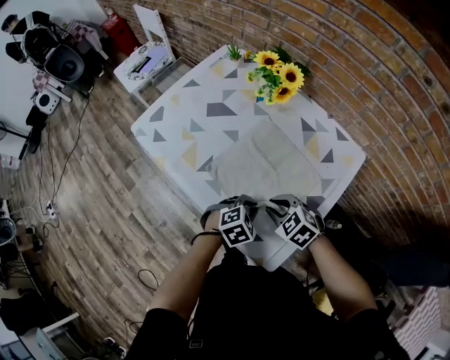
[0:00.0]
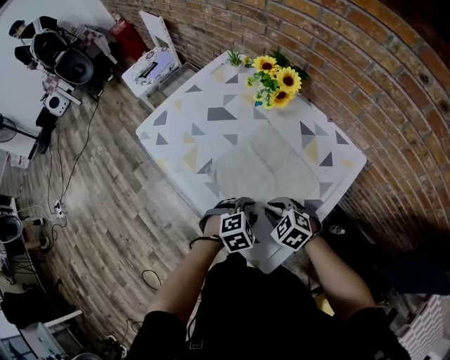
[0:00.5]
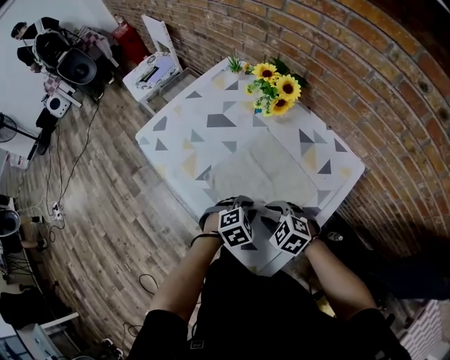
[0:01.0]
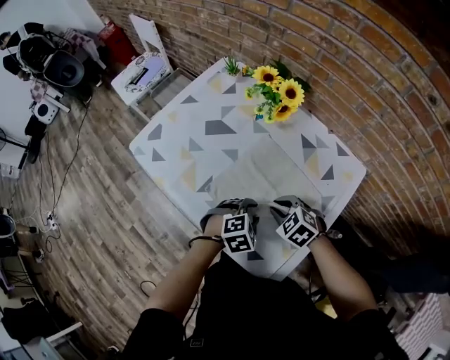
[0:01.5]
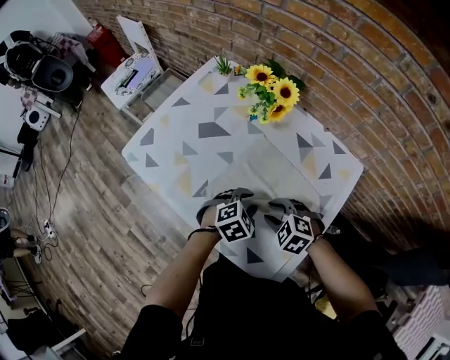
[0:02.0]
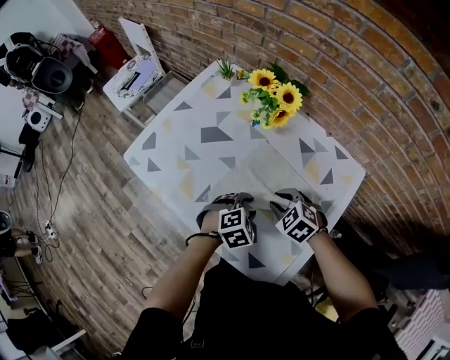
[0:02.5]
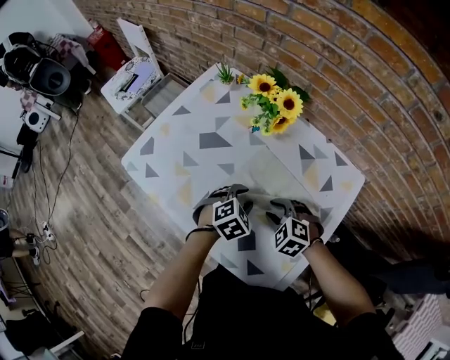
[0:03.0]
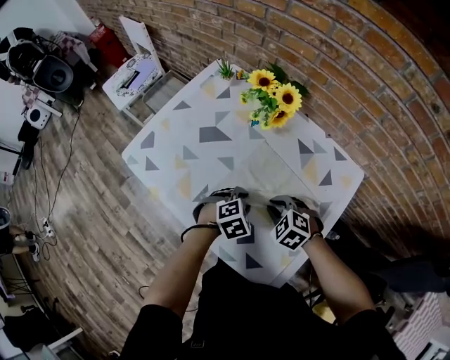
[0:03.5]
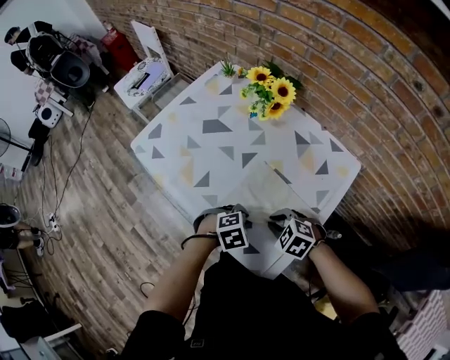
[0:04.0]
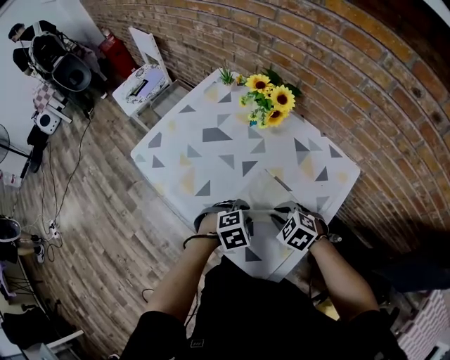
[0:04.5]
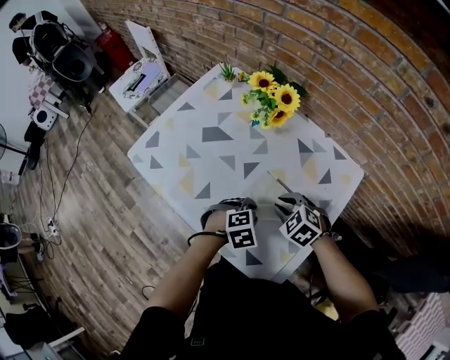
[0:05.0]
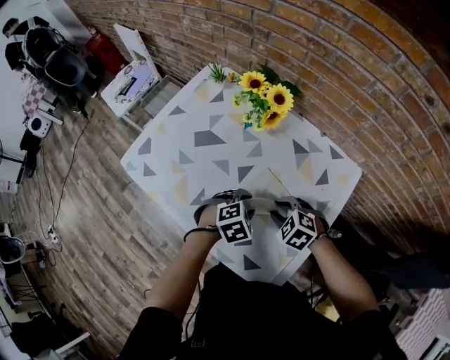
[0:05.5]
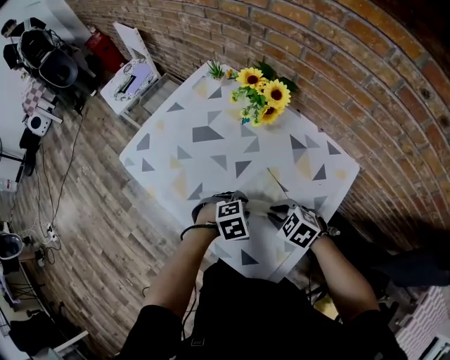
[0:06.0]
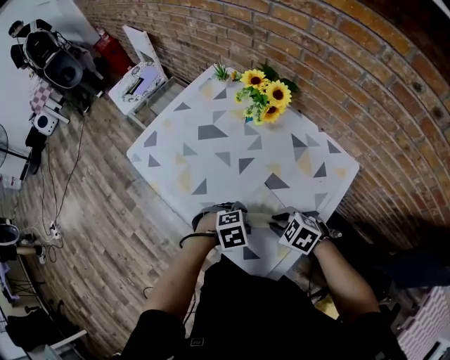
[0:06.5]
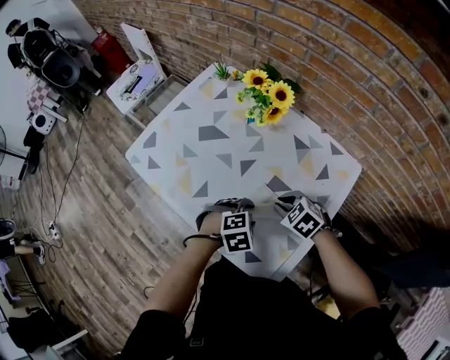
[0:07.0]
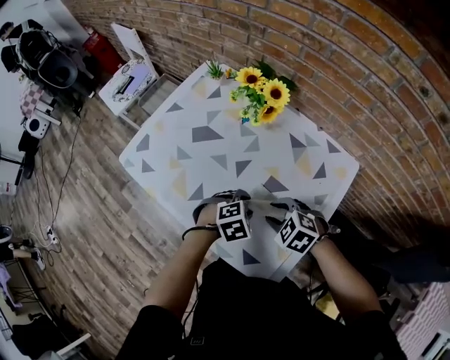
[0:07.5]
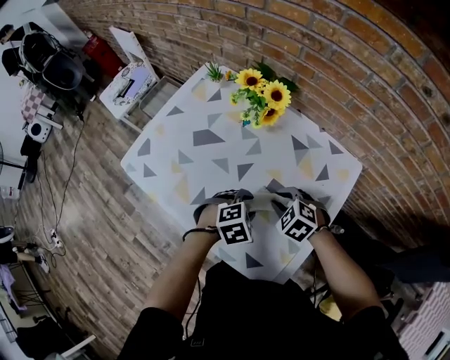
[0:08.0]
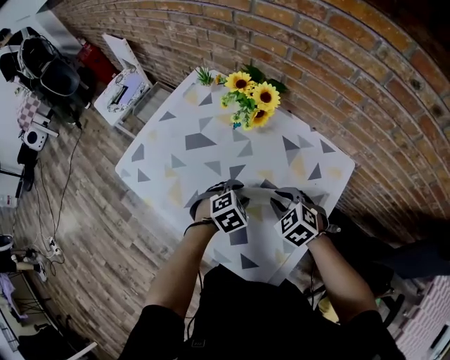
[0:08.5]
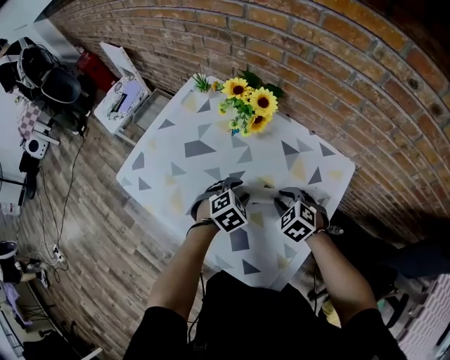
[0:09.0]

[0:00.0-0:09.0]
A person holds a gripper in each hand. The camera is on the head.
0:00.0 to 0:02.0: The left gripper travels forward by about 10 cm, and opens up, while the right gripper goes roughly 5 cm forward.
0:07.0 to 0:09.0: The left gripper changes place by roughly 10 cm, while the right gripper shifts by some 5 cm.

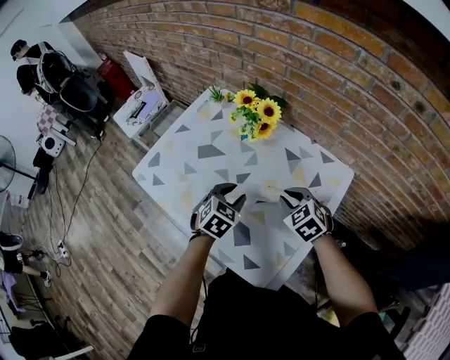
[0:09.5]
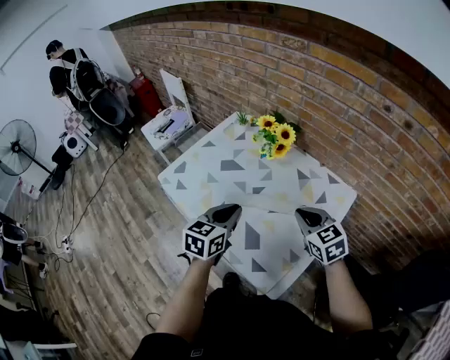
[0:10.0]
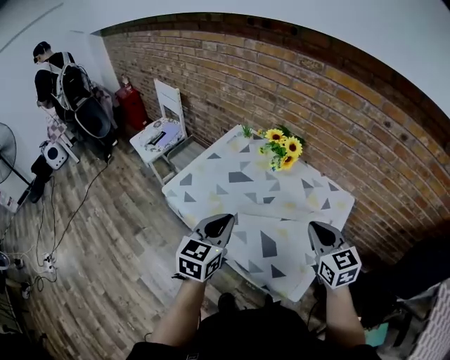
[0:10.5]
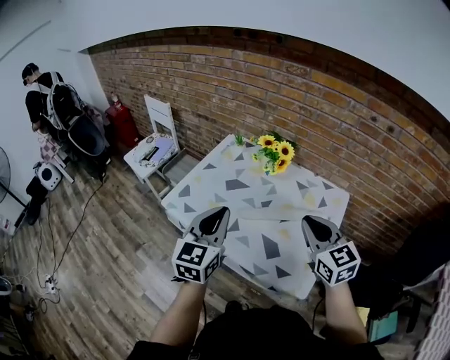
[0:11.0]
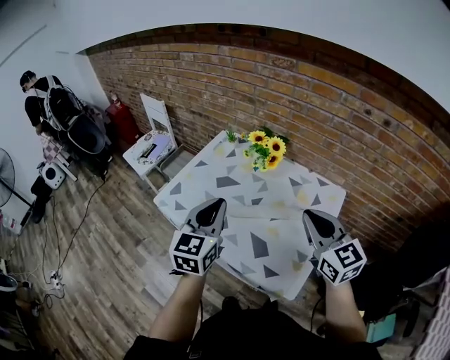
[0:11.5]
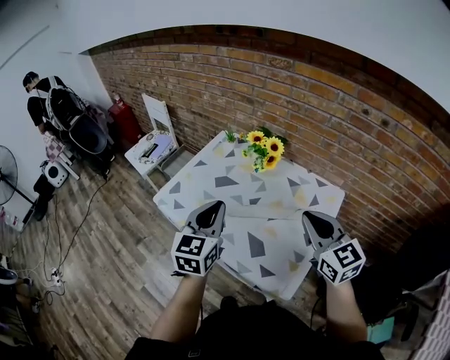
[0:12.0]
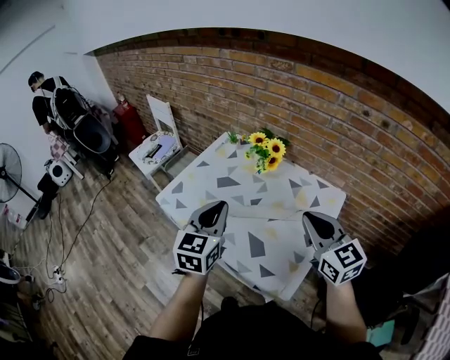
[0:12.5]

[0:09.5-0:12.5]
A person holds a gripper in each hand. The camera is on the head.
0:09.5 to 0:11.0: The right gripper travels upward and backward by approximately 25 cm, and angles its fingers upward, by roughly 30 degrees, while the left gripper moves upward, to the left and backward, some 30 cm, tips its fingers upward by approximately 40 degrees, and closes its fingers.
0:11.0 to 0:12.5: Both grippers travel together to the right, some 5 cm.

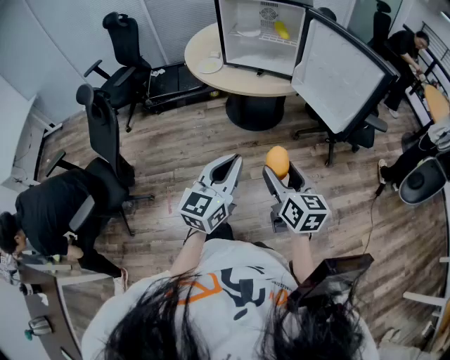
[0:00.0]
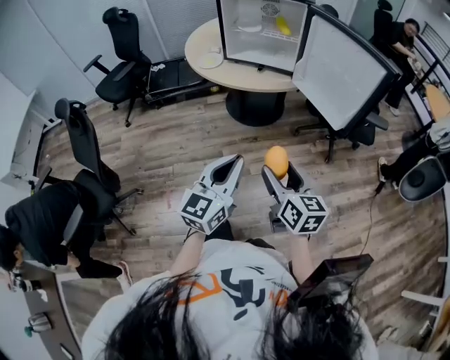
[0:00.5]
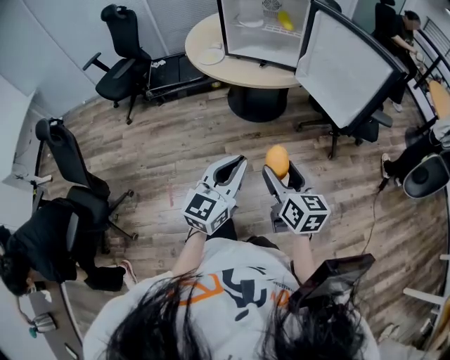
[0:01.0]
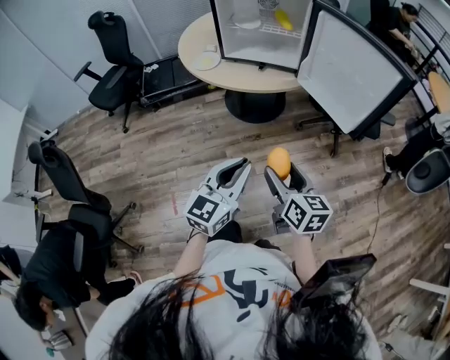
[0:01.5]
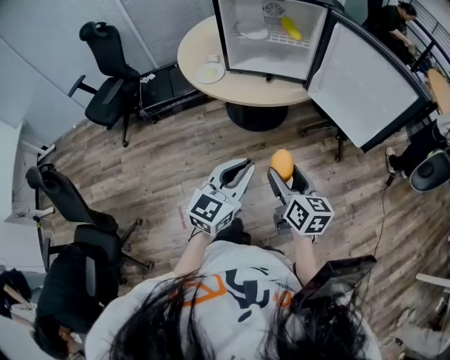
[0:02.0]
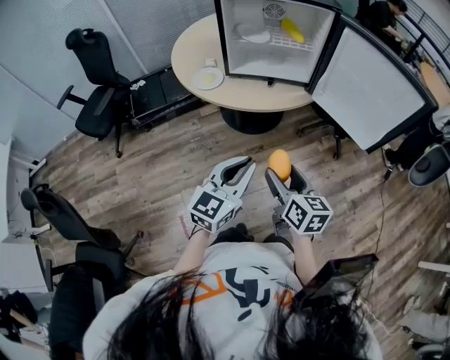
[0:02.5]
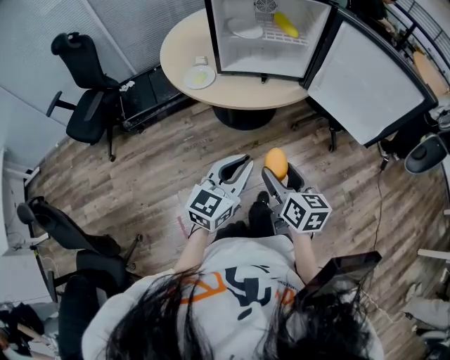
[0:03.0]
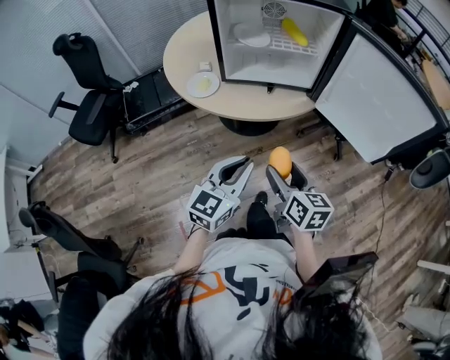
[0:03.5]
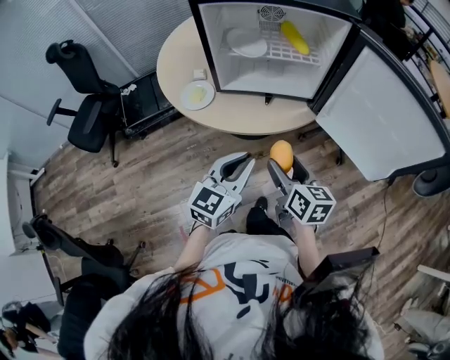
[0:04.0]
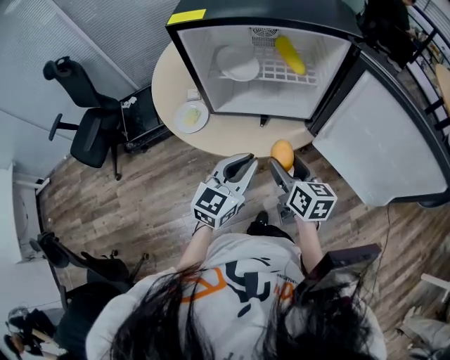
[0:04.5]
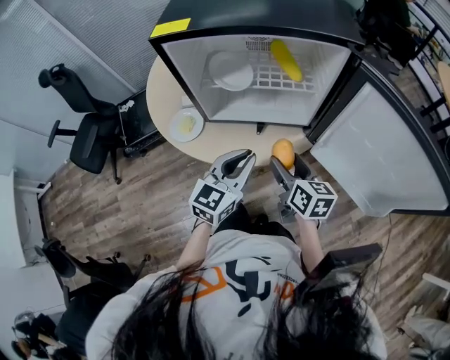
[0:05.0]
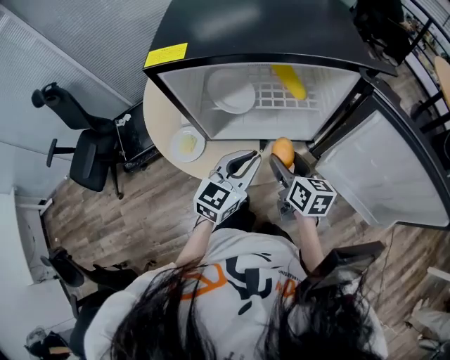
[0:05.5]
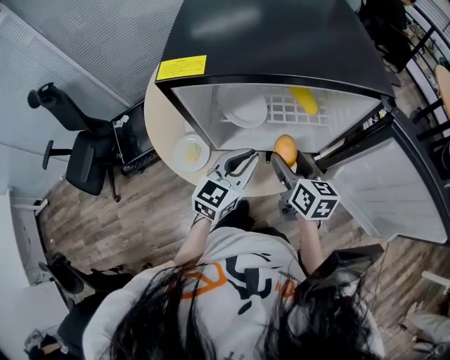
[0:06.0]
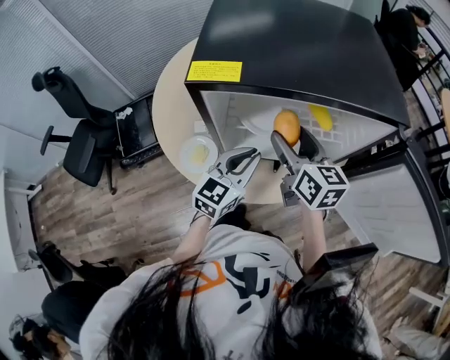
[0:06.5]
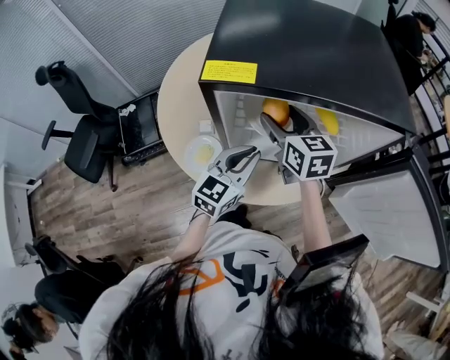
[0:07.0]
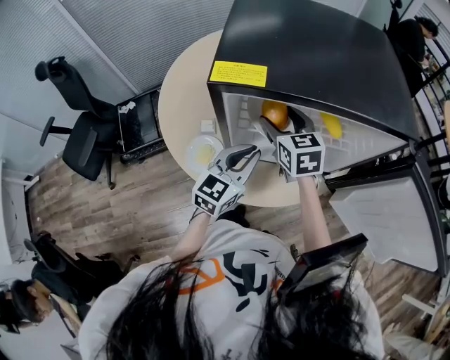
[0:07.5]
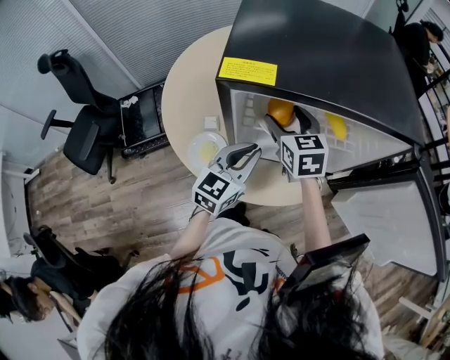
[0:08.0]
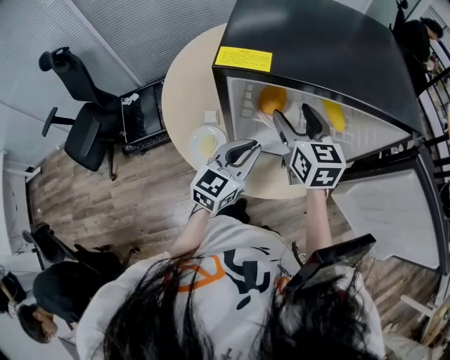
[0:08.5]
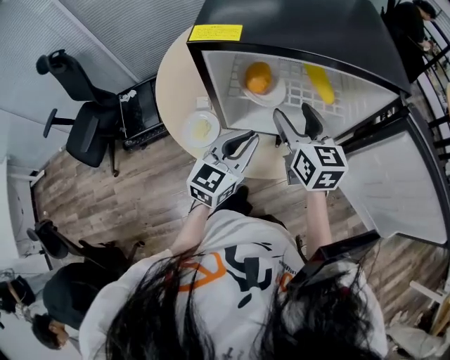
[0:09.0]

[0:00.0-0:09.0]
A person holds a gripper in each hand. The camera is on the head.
0:00.0 to 0:02.0: Both grippers travel together forward and to the left, approximately 15 cm.
0:02.0 to 0:04.5: Both grippers move forward, about 30 cm.
0:04.5 to 0:07.0: The left gripper travels forward and to the left by about 20 cm. Meanwhile the right gripper moves forward, to the left and upward, approximately 30 cm, and rotates about 20 degrees.
0:07.0 to 0:09.0: The right gripper goes roughly 10 cm backward and to the right; the left gripper ends up some 5 cm from where it was.

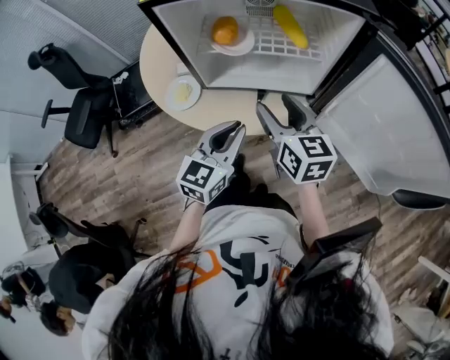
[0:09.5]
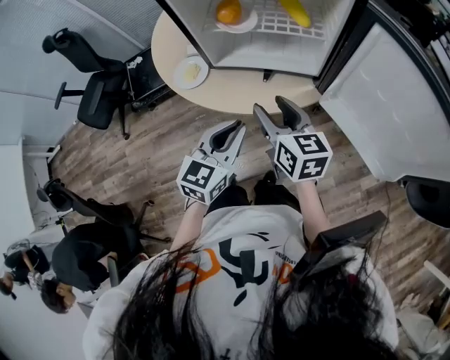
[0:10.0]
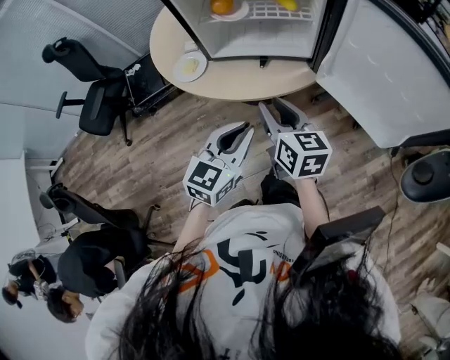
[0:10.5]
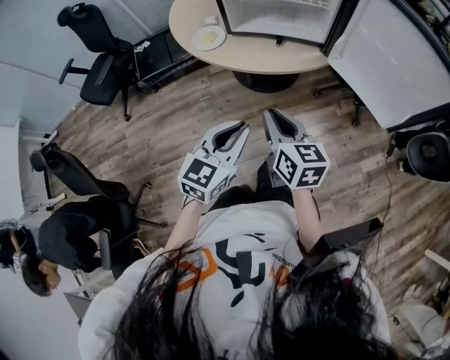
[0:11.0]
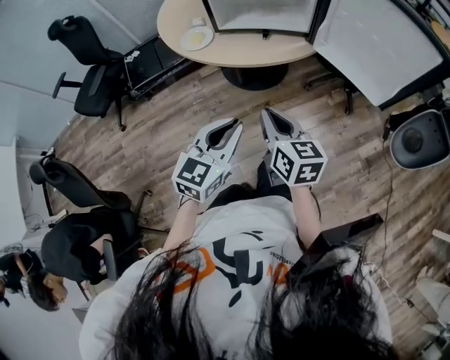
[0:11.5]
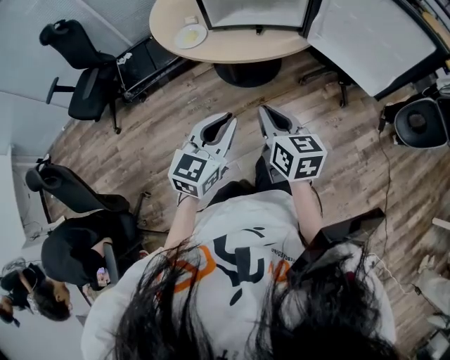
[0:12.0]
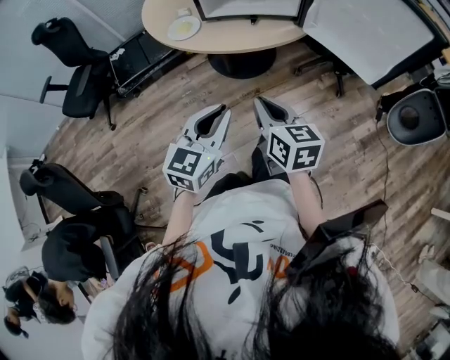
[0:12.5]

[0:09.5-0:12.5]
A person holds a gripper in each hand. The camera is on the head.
0:09.5 to 0:11.0: The two grippers go roughly 25 cm backward. The right gripper closes up.
0:11.0 to 0:12.5: The right gripper goes roughly 5 cm backward.

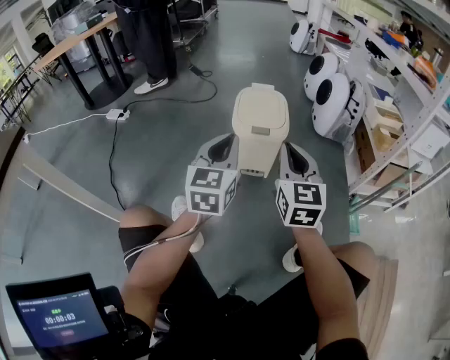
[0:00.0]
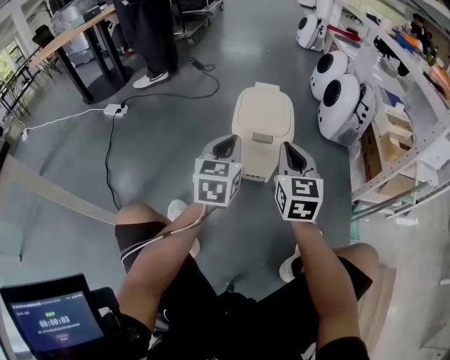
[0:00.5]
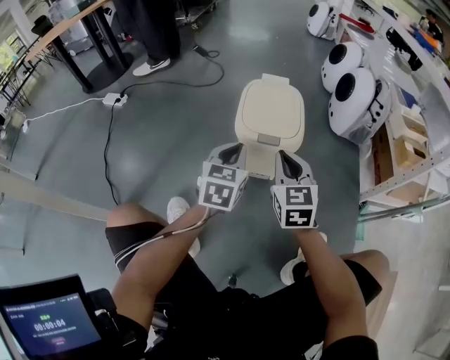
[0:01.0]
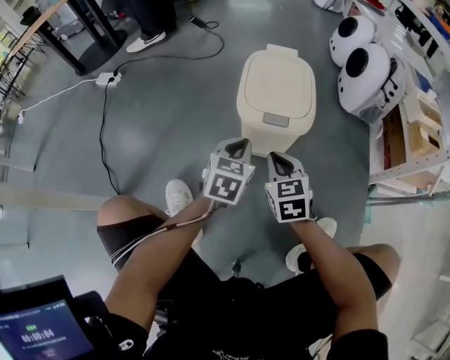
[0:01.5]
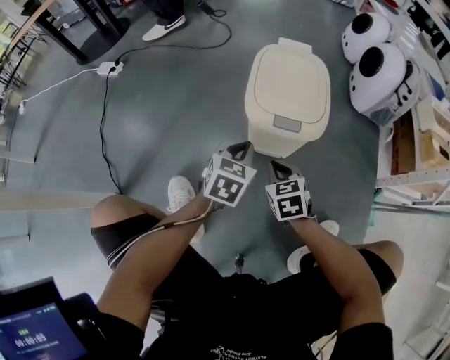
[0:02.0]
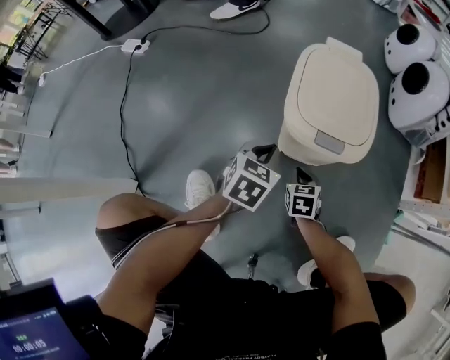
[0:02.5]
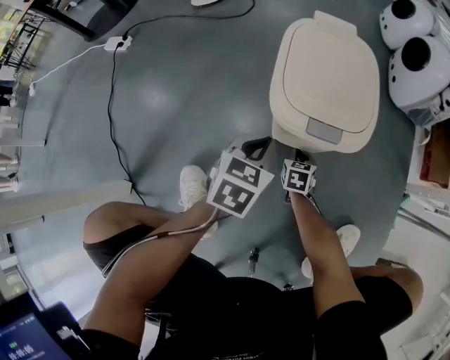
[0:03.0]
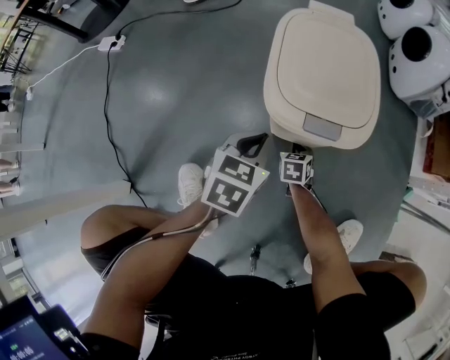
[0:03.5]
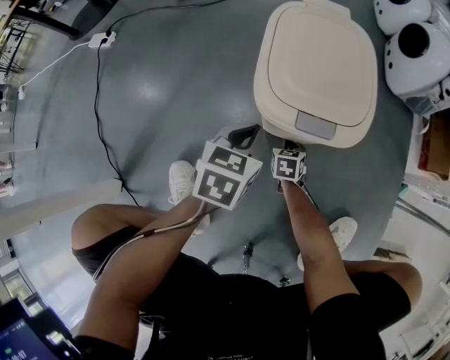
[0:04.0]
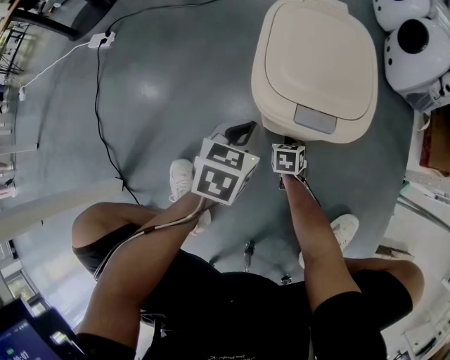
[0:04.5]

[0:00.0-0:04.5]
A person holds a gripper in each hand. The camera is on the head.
0:00.0 to 0:02.0: The right gripper goes approximately 30 cm downward, and points its fingers roughly 40 degrees further downward, while the left gripper shifts about 30 cm downward and forward, and tips its fingers downward by about 30 degrees.
0:02.0 to 0:04.5: The right gripper moves downward, about 25 cm, and changes its angle by about 20 degrees, while the left gripper heads downward, covering roughly 5 cm.
